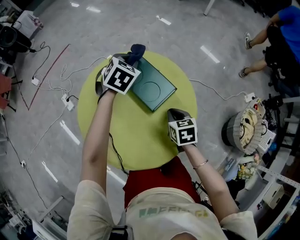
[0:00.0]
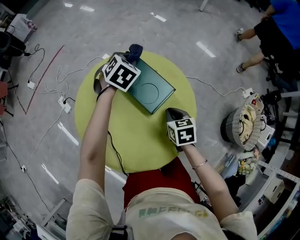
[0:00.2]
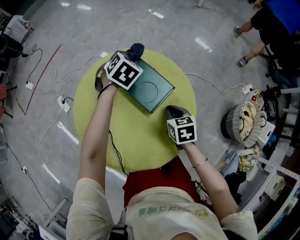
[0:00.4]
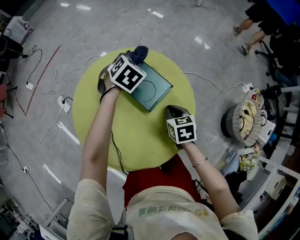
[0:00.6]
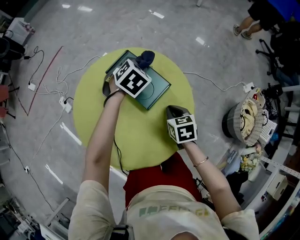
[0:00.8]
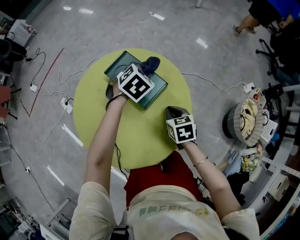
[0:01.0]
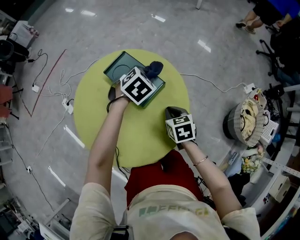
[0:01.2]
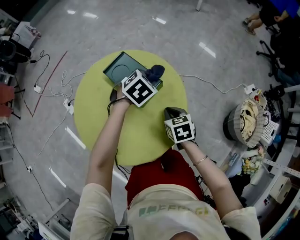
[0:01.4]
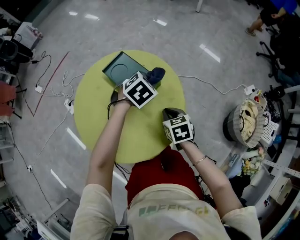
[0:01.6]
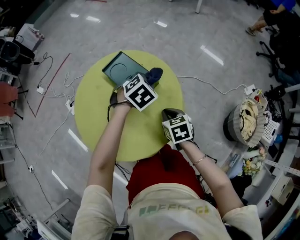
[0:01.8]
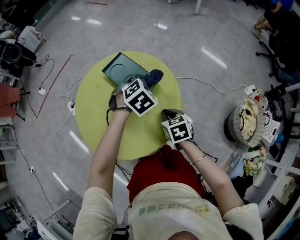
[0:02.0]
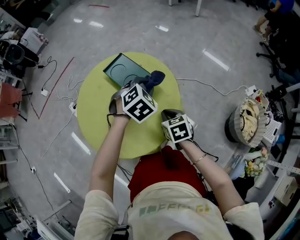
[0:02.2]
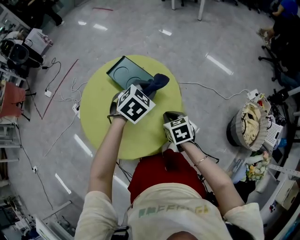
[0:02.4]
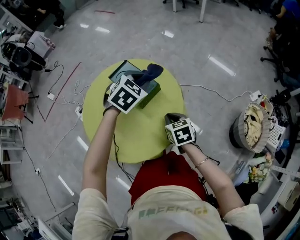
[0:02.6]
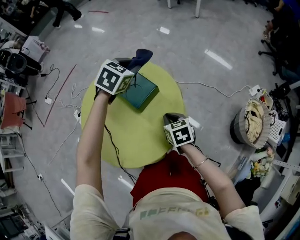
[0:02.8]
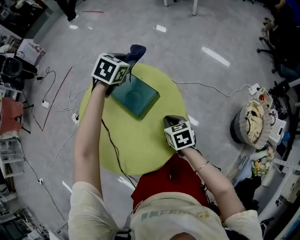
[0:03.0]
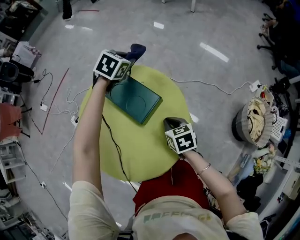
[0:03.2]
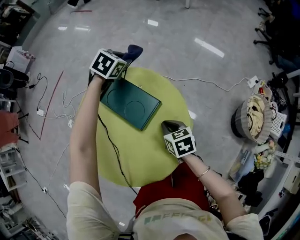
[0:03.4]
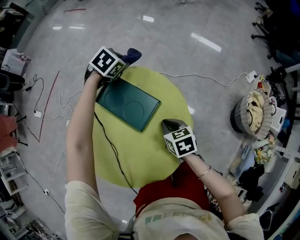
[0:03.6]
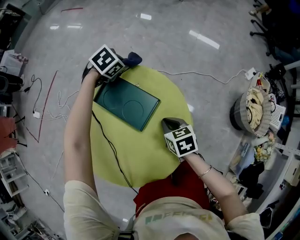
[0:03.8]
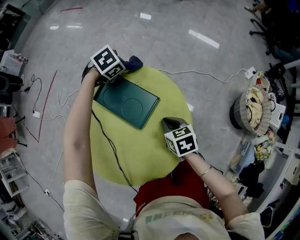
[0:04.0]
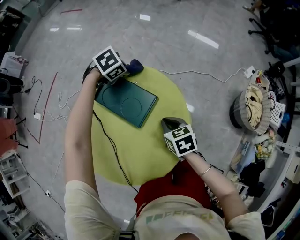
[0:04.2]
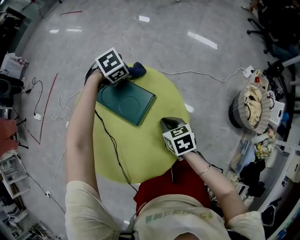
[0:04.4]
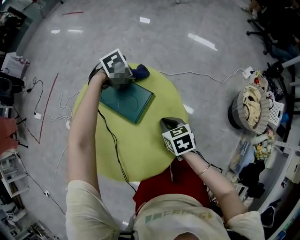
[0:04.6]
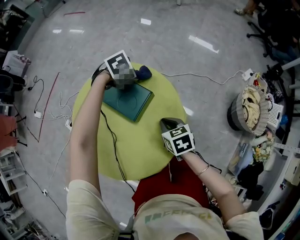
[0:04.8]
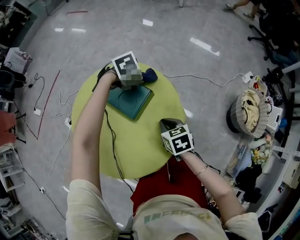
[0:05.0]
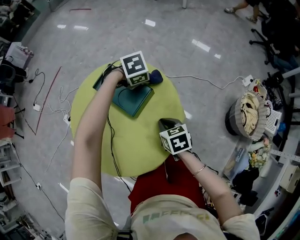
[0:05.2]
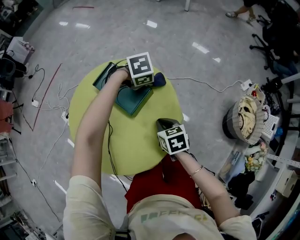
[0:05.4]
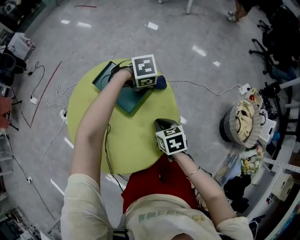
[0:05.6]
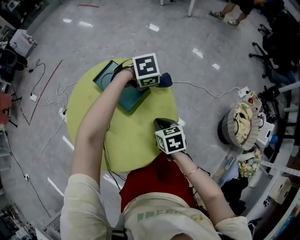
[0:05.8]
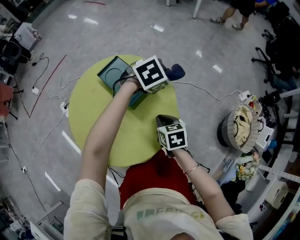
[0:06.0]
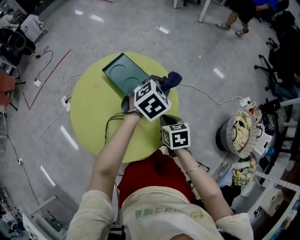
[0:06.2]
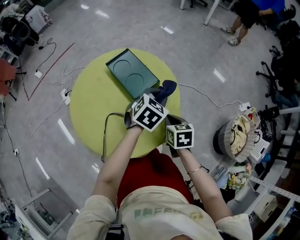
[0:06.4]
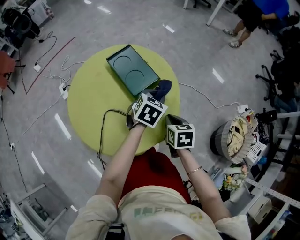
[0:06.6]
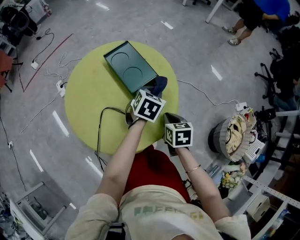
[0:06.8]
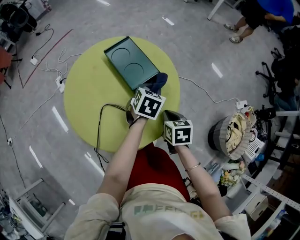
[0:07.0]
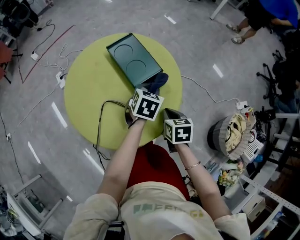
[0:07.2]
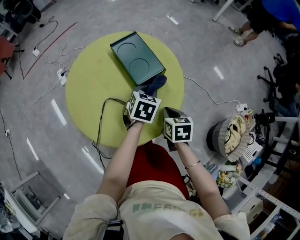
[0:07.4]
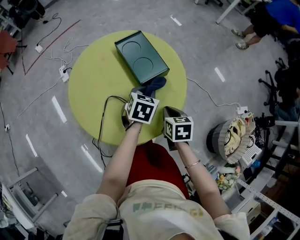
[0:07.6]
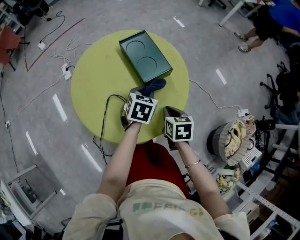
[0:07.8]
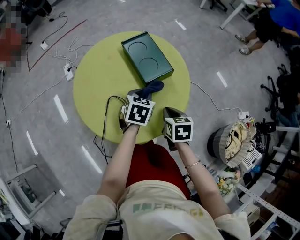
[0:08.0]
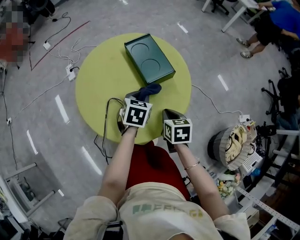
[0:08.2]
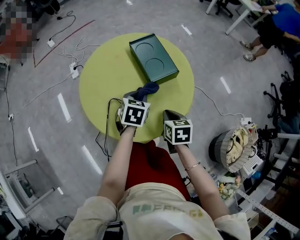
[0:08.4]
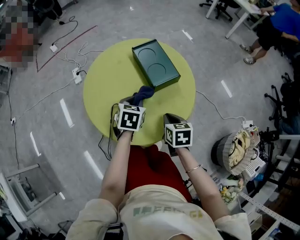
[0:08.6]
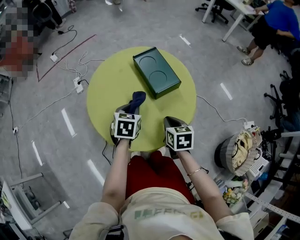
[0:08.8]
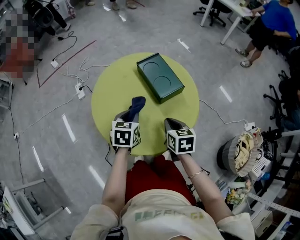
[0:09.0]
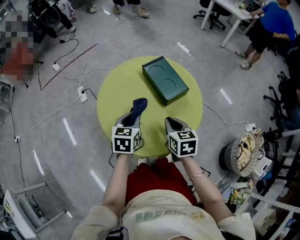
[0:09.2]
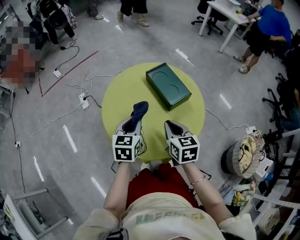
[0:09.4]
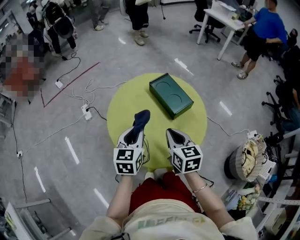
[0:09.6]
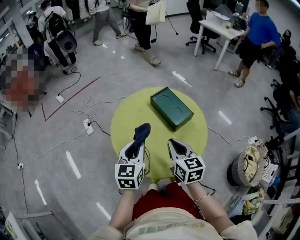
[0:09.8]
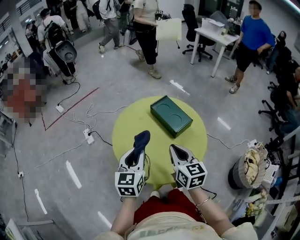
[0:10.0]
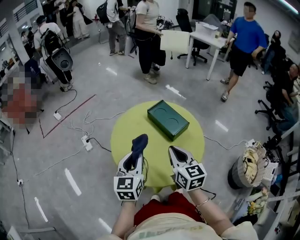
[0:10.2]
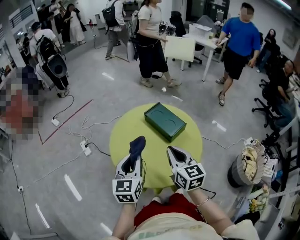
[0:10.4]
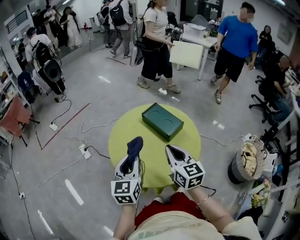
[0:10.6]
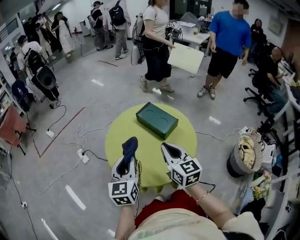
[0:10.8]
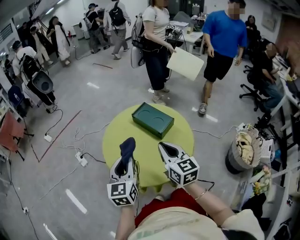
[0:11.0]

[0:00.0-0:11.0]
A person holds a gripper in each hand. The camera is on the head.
0:00.0 to 0:01.6: The right gripper moves to the right, about 5 cm. The left gripper travels to the right and backward by some 20 cm, and rotates about 20 degrees.
0:01.6 to 0:03.2: The left gripper heads forward, covering approximately 20 cm.
0:03.2 to 0:04.8: The left gripper ends up approximately 15 cm from where it was, and rotates approximately 40 degrees.
0:04.8 to 0:06.2: The left gripper ends up approximately 15 cm from where it was, and turns by some 40 degrees.
0:06.2 to 0:07.8: The left gripper is displaced to the left, downward and backward by approximately 20 cm, and twists about 40 degrees counterclockwise, seen from behind.
0:07.8 to 0:09.4: The grippers both shift to the left and upward by roughly 20 cm. The right gripper changes its angle by roughly 20 degrees; the left gripper rotates roughly 20 degrees.
0:09.4 to 0:11.0: The left gripper heads upward, backward and to the left, covering some 15 cm. The right gripper shifts approximately 10 cm upward, and changes its angle by about 20 degrees.

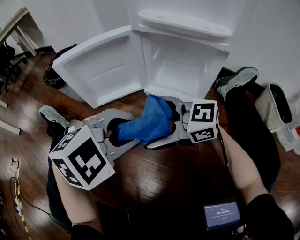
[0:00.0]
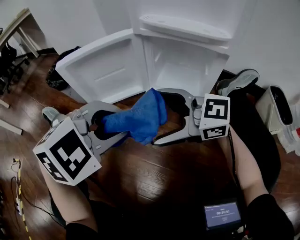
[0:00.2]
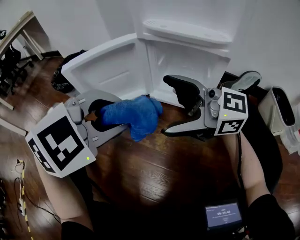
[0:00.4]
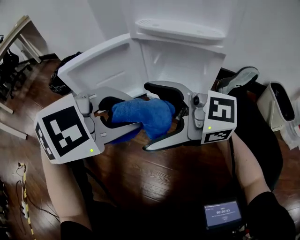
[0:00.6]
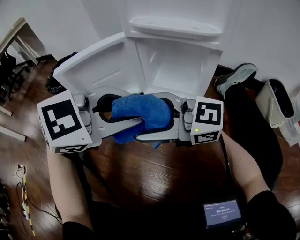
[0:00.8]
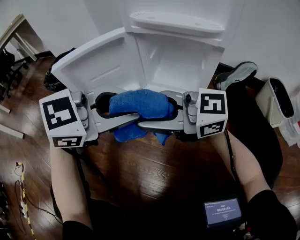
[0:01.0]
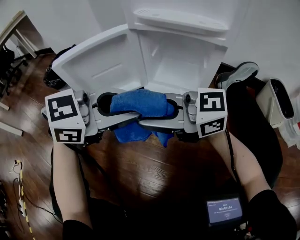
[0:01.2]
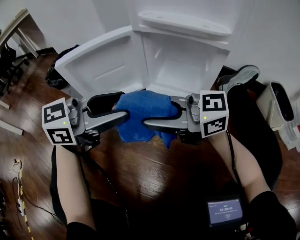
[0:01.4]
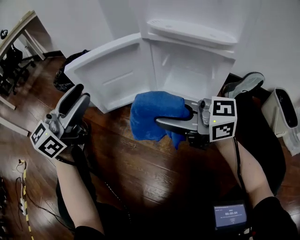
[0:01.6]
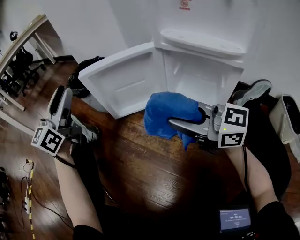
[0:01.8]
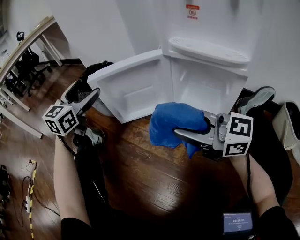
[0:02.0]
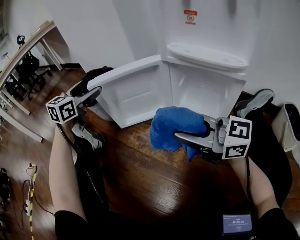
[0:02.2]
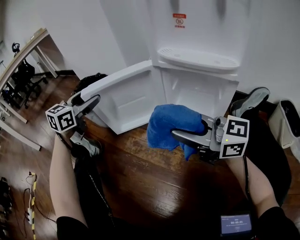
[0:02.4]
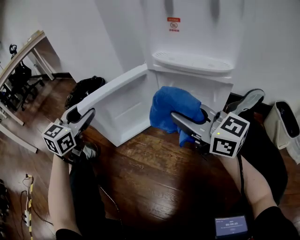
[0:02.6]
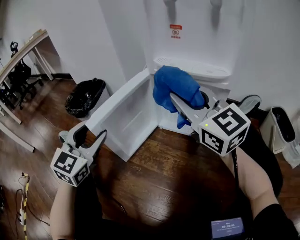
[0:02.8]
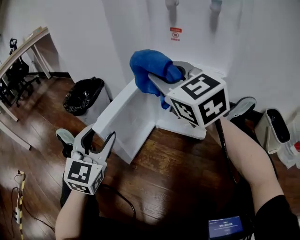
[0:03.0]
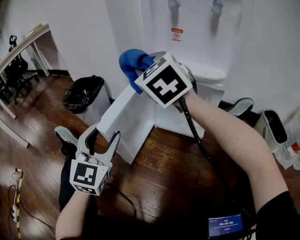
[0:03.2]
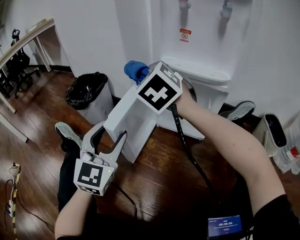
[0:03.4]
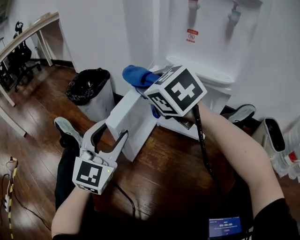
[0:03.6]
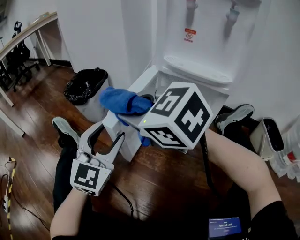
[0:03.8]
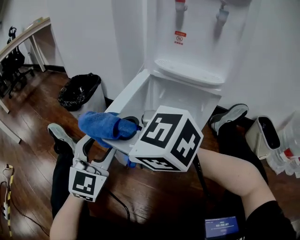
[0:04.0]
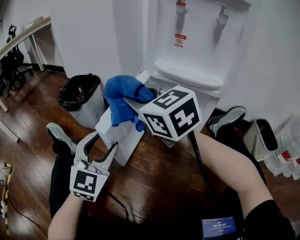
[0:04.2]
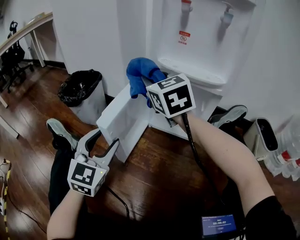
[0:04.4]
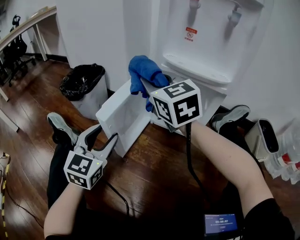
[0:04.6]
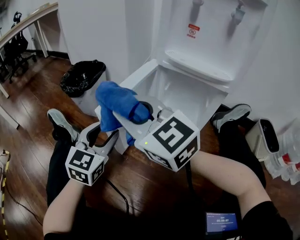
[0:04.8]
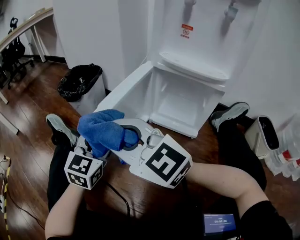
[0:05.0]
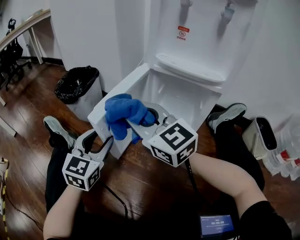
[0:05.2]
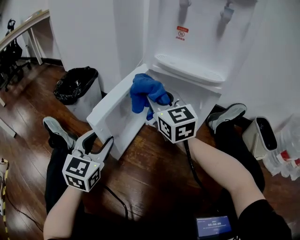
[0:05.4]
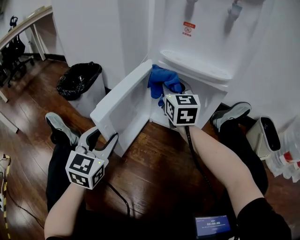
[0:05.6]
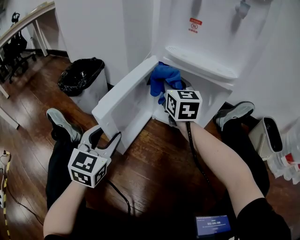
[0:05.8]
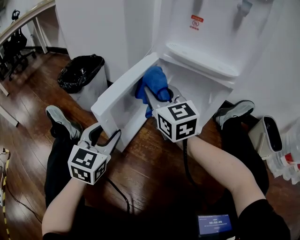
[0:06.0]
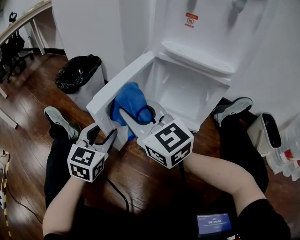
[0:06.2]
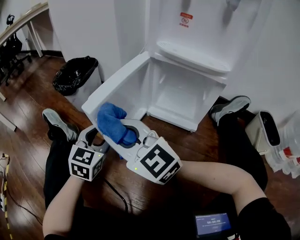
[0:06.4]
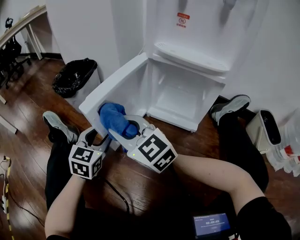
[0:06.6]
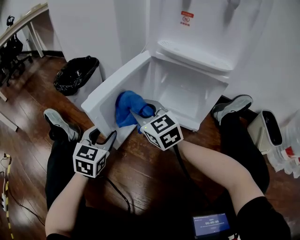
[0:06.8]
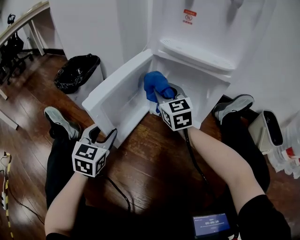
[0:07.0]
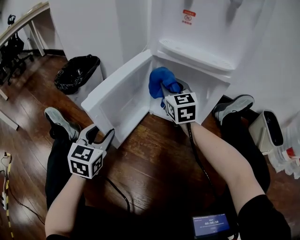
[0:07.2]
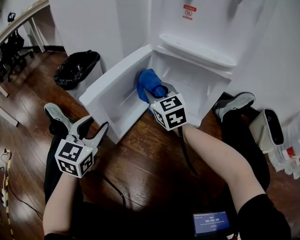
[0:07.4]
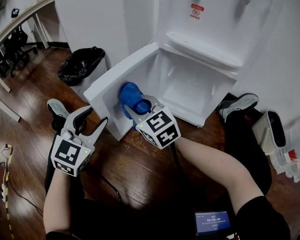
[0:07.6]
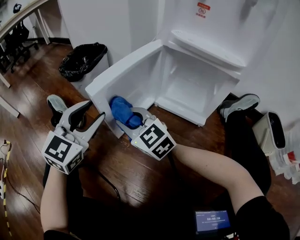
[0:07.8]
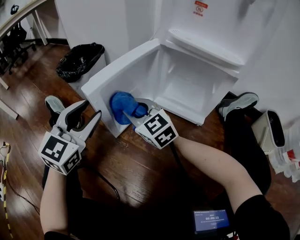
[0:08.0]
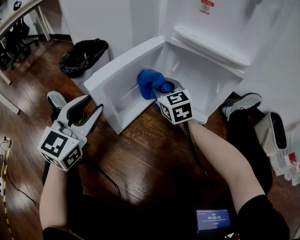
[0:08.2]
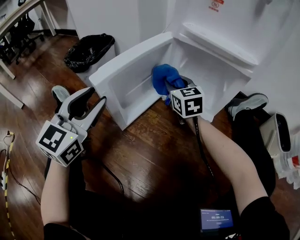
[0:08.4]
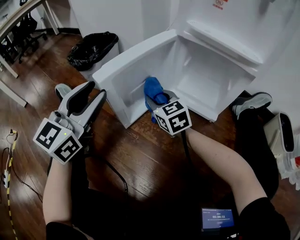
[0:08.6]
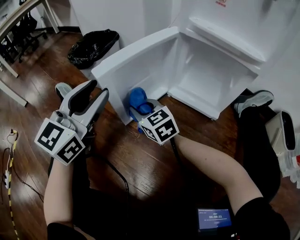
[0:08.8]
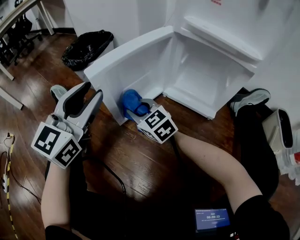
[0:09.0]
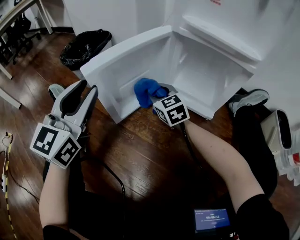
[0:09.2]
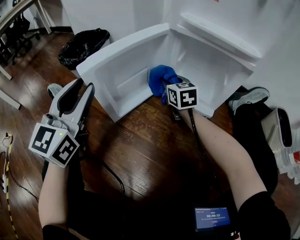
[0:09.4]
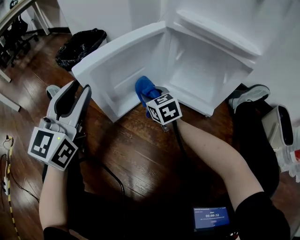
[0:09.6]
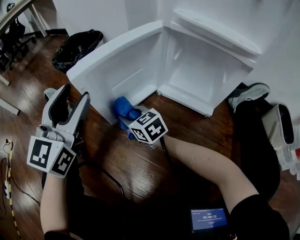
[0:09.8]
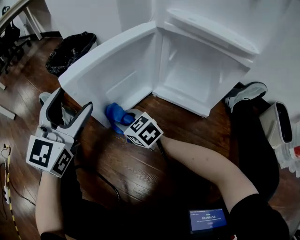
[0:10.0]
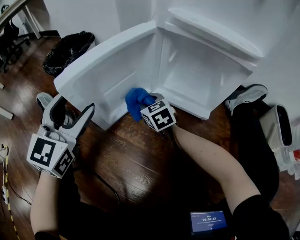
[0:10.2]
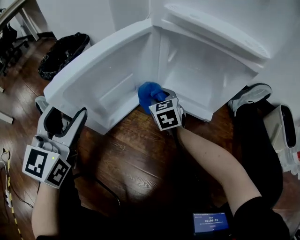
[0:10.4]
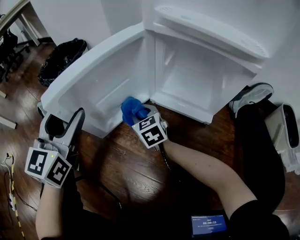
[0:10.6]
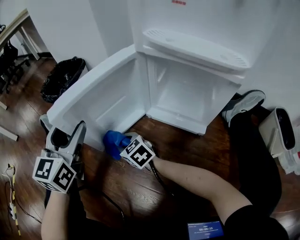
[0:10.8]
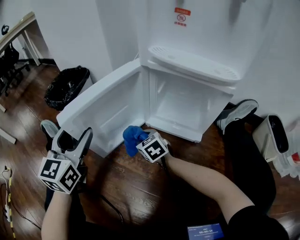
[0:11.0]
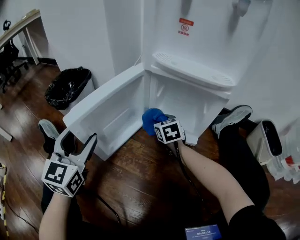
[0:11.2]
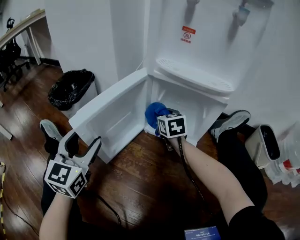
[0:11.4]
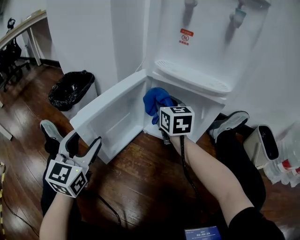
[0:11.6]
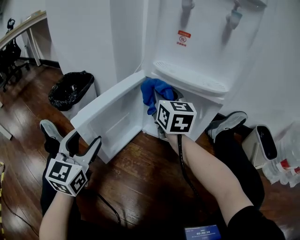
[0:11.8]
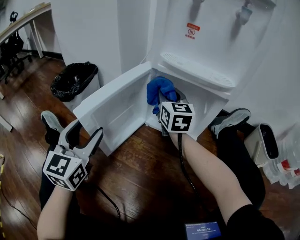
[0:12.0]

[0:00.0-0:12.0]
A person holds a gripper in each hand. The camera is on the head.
0:00.0 to 0:01.6: The left gripper moves about 20 cm, and angles its fingers upward, by approximately 60 degrees. Meanwhile the right gripper goes some 5 cm upward, and closes its fingers.
0:01.6 to 0:03.0: The right gripper travels upward and forward by about 20 cm, and turns by some 60 degrees. The left gripper moves downward, about 5 cm, goes forward and returns, some 15 cm each way, turns by approximately 40 degrees, and opens, then closes again.
0:03.0 to 0:04.4: The right gripper goes forward and backward, about 20 cm each way, reversing 2 times.
0:04.4 to 0:06.0: The right gripper goes forward and backward, some 25 cm each way, reversing 2 times. The left gripper goes about 5 cm downward.
0:06.0 to 0:07.6: The right gripper swings left and right, about 20 cm each way, with 2 reversals; the left gripper ends up about 5 cm from where it was.
0:07.6 to 0:09.0: The right gripper swings left and right, roughly 15 cm each way, with 2 reversals, while the left gripper goes about 5 cm upward, and turns by about 20 degrees.
0:09.0 to 0:10.4: The right gripper goes left and right, some 20 cm each way, reversing 2 times, and swivels some 30 degrees. Meanwhile the left gripper shifts by approximately 5 cm.
0:10.4 to 0:12.0: The right gripper goes some 20 cm upward, and changes its angle by roughly 30 degrees.
